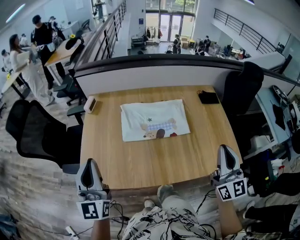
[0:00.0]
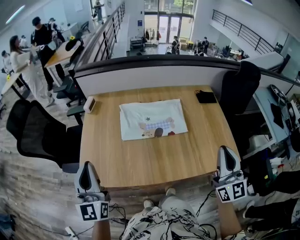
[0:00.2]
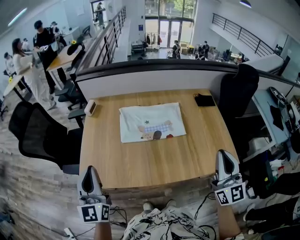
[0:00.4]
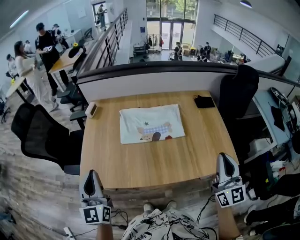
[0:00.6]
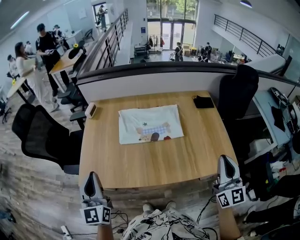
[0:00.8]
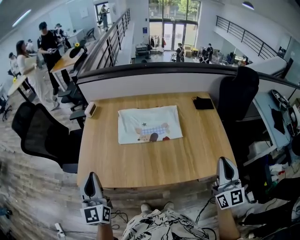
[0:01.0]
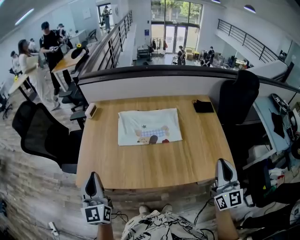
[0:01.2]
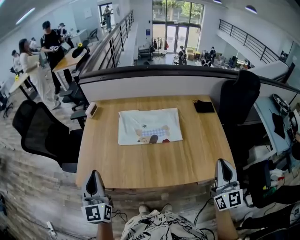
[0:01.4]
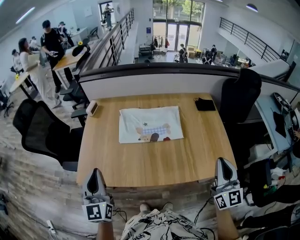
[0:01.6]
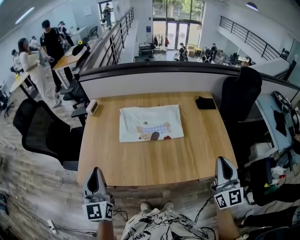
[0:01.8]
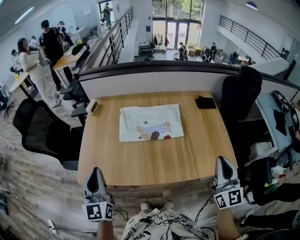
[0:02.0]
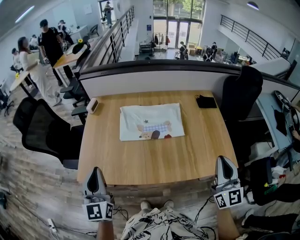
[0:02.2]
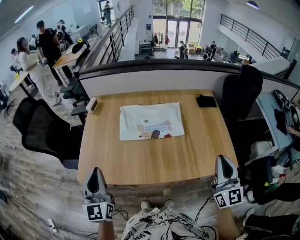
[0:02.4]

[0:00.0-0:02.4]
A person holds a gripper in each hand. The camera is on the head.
0:00.0 to 0:01.2: The right gripper shifts roughly 10 cm to the right and backward; the left gripper shifts some 5 cm backward.
0:01.2 to 0:02.4: The grippers stay close to where they were, moving slightly.

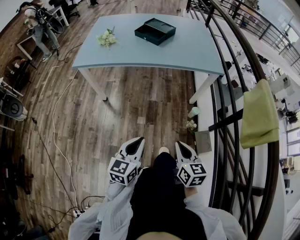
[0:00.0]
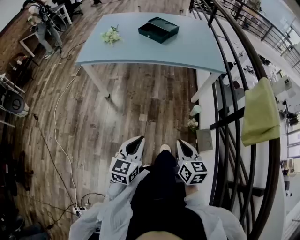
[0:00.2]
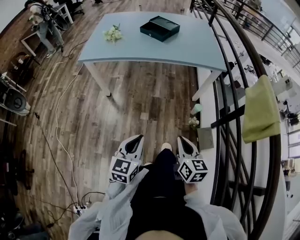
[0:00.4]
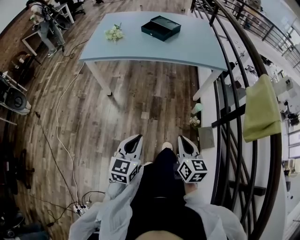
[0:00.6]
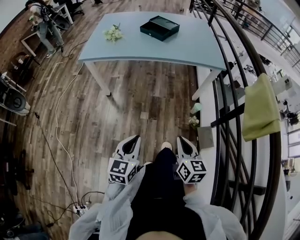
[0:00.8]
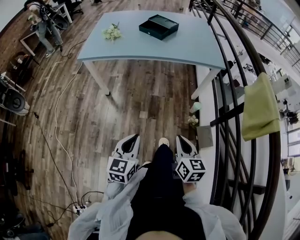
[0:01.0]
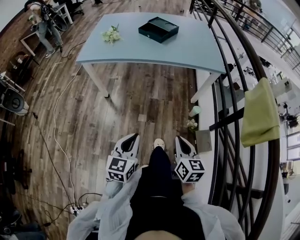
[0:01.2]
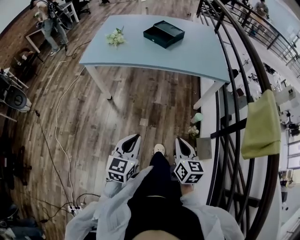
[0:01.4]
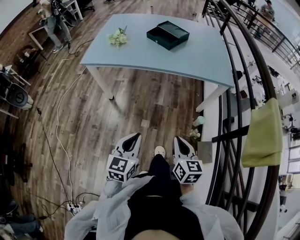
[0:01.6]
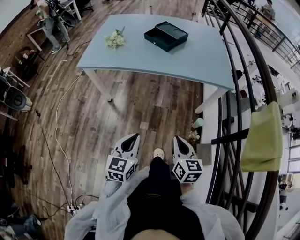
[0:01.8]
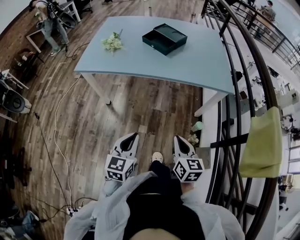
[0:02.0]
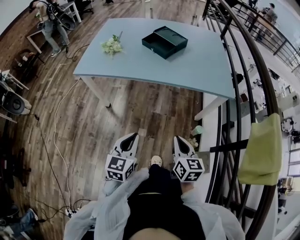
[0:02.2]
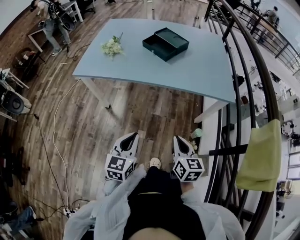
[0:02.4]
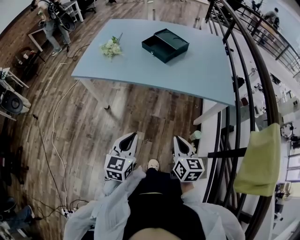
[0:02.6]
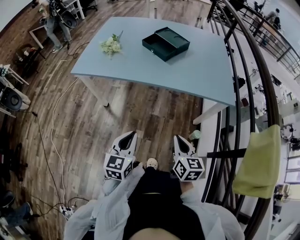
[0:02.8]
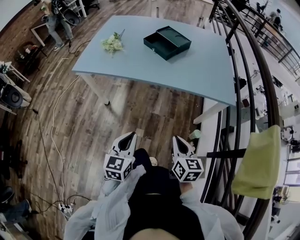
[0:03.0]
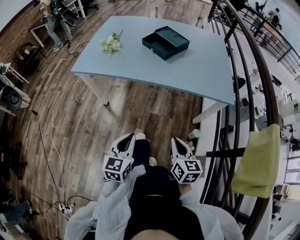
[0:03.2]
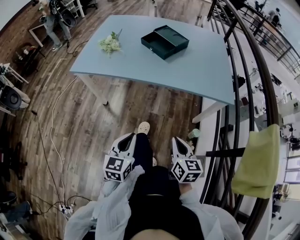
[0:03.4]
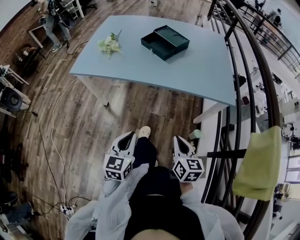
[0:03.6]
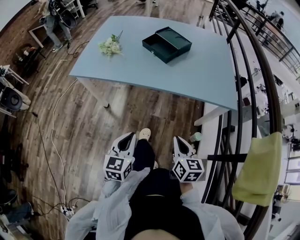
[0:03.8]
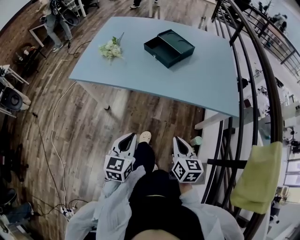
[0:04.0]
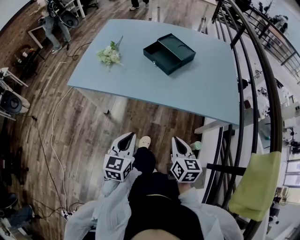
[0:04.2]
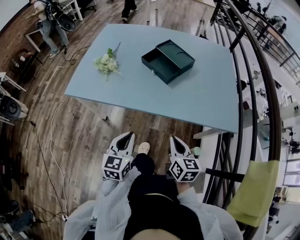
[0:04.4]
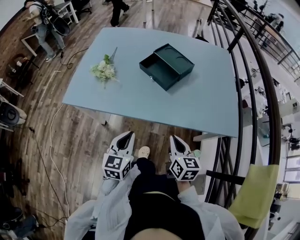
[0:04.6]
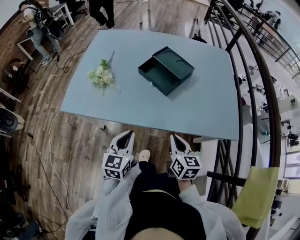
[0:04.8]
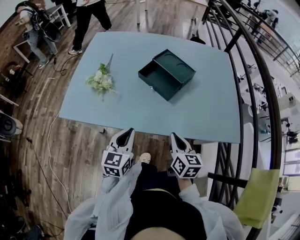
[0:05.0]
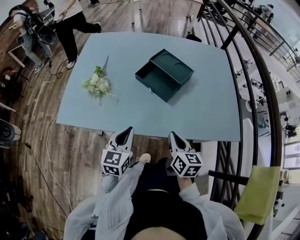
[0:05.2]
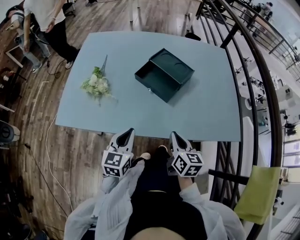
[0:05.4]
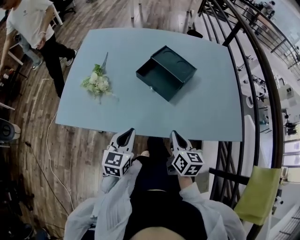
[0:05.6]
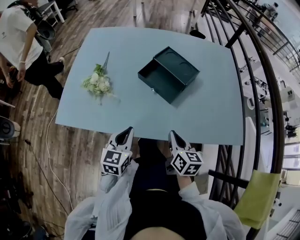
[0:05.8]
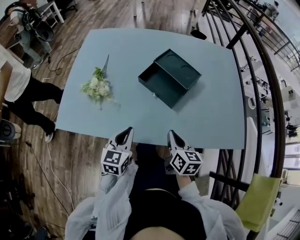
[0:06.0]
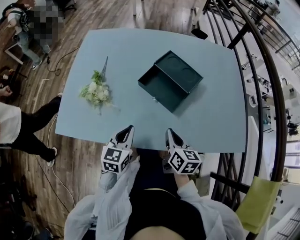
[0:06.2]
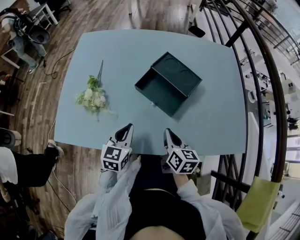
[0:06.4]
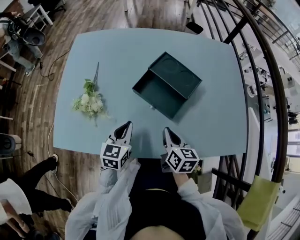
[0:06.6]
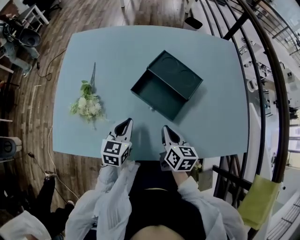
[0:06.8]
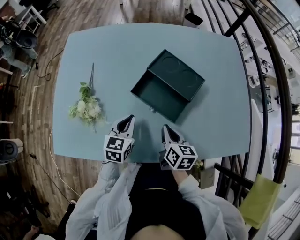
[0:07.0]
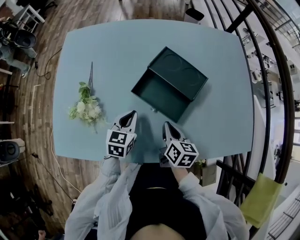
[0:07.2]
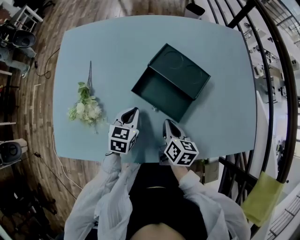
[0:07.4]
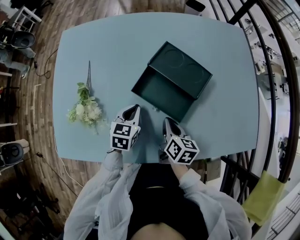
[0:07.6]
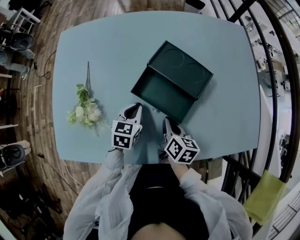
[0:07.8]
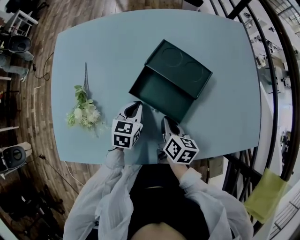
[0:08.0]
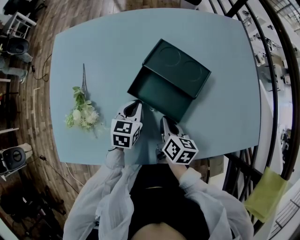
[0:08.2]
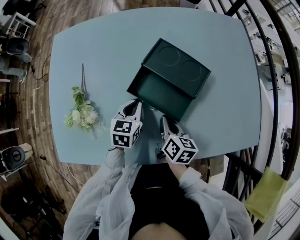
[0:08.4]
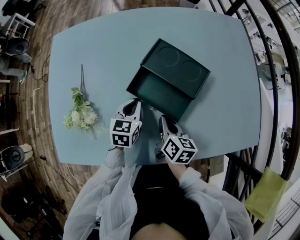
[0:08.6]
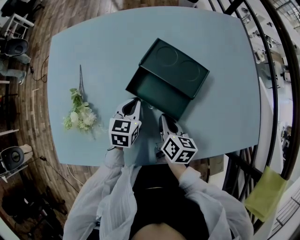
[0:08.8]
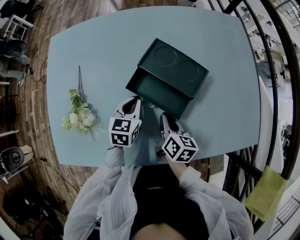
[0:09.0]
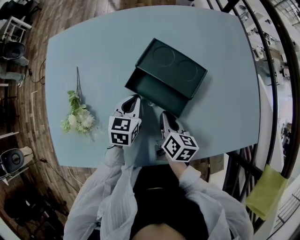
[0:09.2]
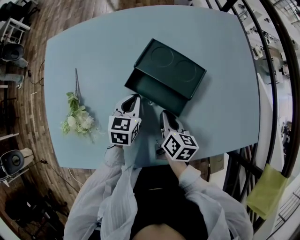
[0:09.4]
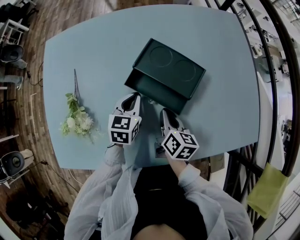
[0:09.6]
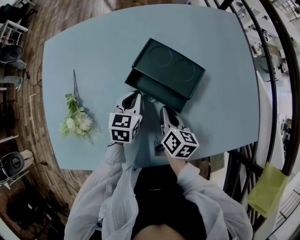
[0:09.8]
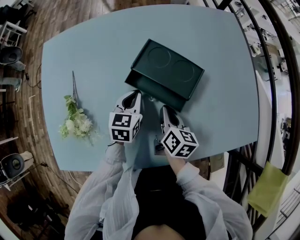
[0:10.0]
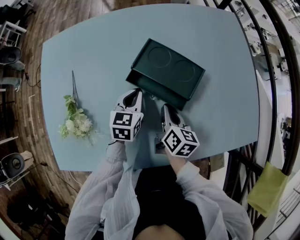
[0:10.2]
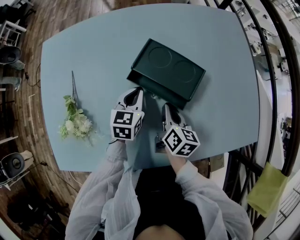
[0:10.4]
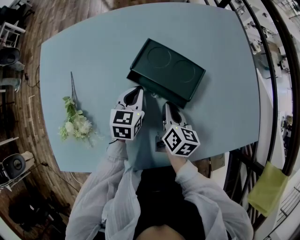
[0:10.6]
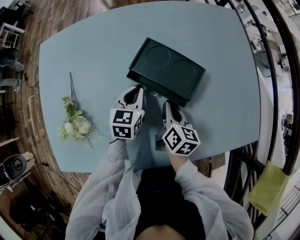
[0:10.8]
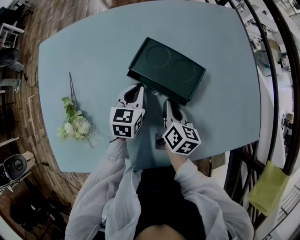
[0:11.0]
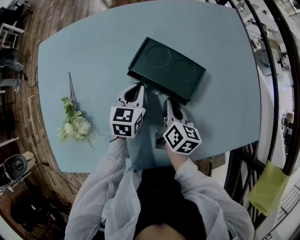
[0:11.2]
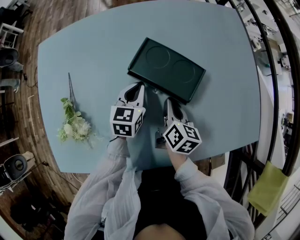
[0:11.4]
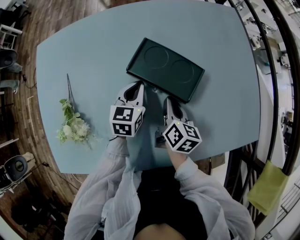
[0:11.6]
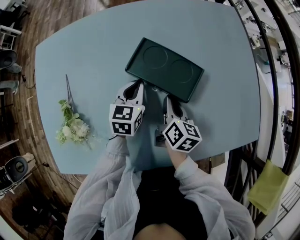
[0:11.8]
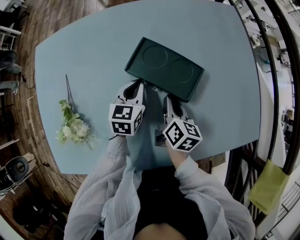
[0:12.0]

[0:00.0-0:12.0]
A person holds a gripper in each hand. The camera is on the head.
0:00.0 to 0:01.6: Both grippers move forward, about 5 cm.
0:01.6 to 0:03.0: The grippers both shift forward by some 10 cm.
0:03.0 to 0:04.4: The grippers both shift forward by roughly 20 cm.
0:04.4 to 0:06.0: Both grippers travel together forward, approximately 20 cm.
0:06.0 to 0:07.6: The grippers both shift forward and downward by about 20 cm.
0:07.6 to 0:09.0: The left gripper moves some 5 cm.
0:09.0 to 0:10.4: The right gripper moves some 5 cm, while the left gripper ends up approximately 5 cm from where it was.
0:10.4 to 0:12.0: The grippers stay close to where they were, moving slightly.

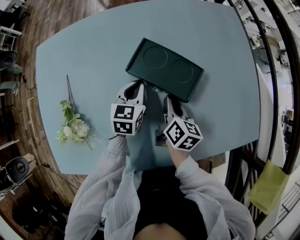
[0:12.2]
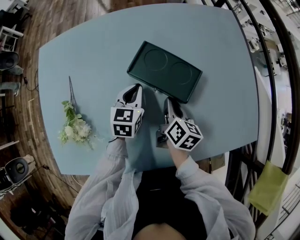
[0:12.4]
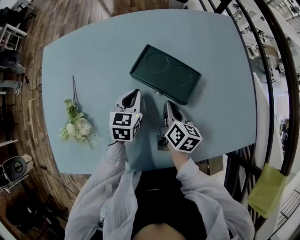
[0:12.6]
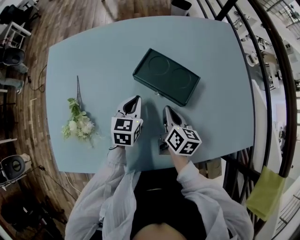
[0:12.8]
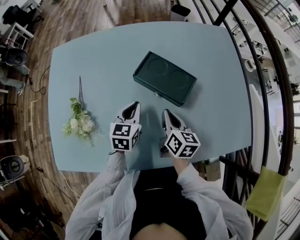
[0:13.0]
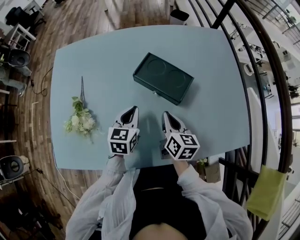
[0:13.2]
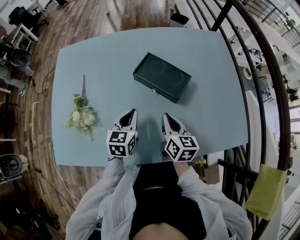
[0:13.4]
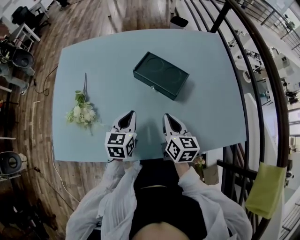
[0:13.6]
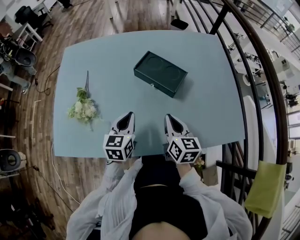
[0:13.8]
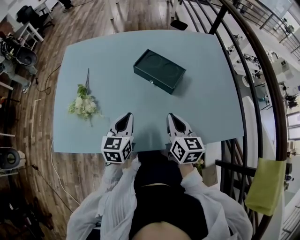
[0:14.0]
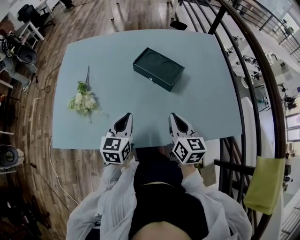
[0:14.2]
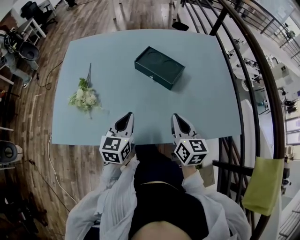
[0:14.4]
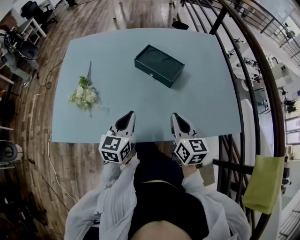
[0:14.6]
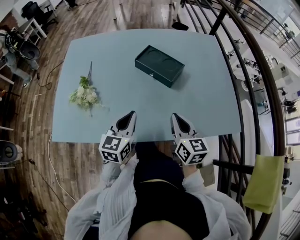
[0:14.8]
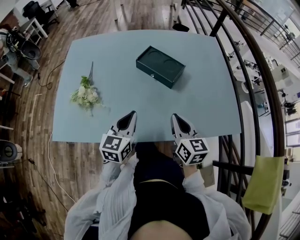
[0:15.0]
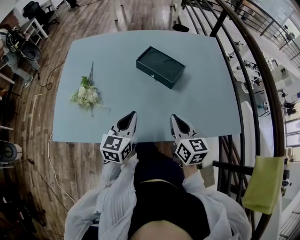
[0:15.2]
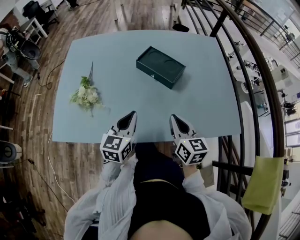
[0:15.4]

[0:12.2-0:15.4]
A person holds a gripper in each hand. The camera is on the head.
0:12.2 to 0:13.8: Both grippers move backward and upward, approximately 20 cm. The right gripper changes its angle by roughly 30 degrees.
0:13.8 to 0:15.4: The grippers both shift backward by roughly 5 cm.

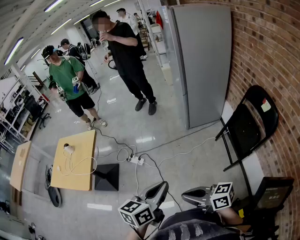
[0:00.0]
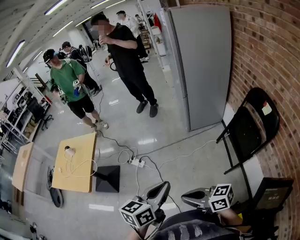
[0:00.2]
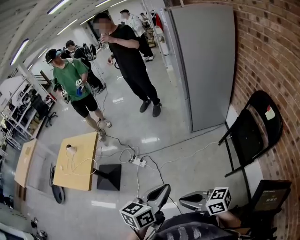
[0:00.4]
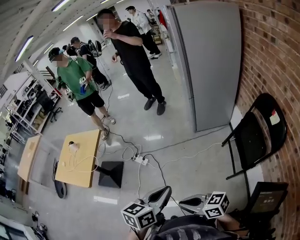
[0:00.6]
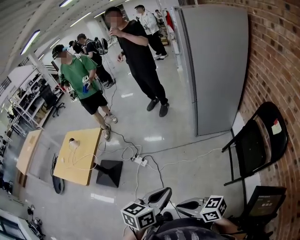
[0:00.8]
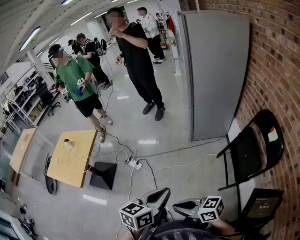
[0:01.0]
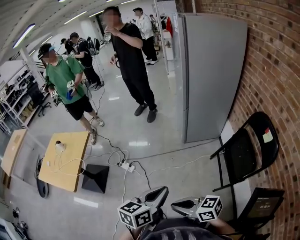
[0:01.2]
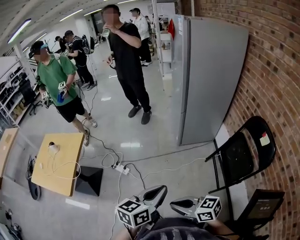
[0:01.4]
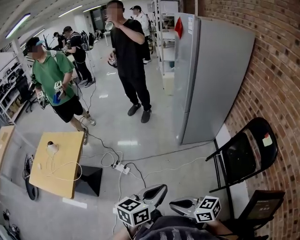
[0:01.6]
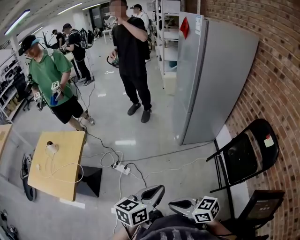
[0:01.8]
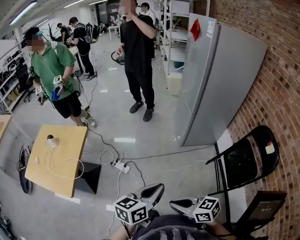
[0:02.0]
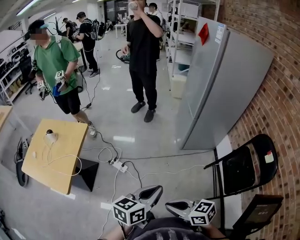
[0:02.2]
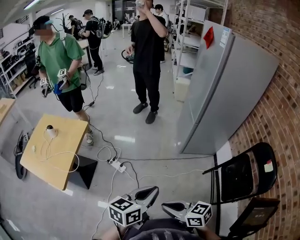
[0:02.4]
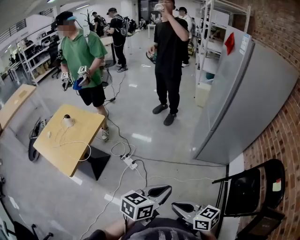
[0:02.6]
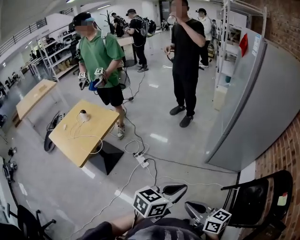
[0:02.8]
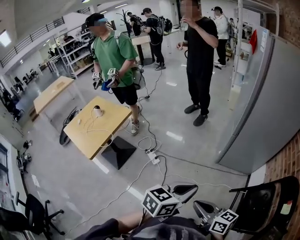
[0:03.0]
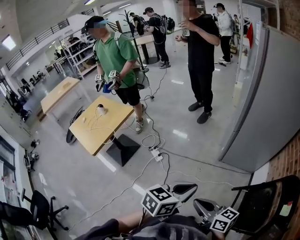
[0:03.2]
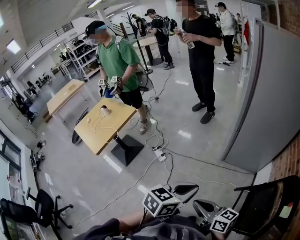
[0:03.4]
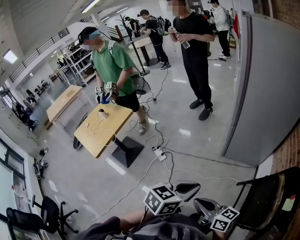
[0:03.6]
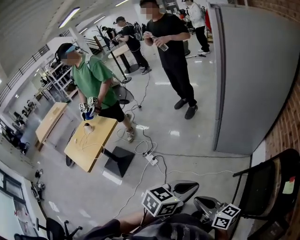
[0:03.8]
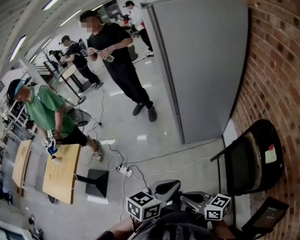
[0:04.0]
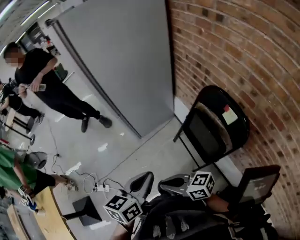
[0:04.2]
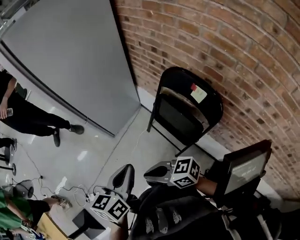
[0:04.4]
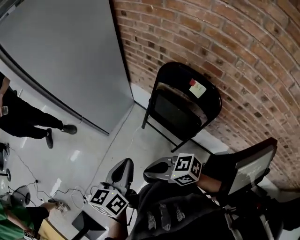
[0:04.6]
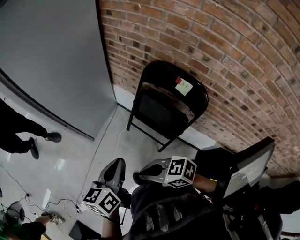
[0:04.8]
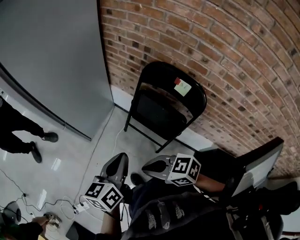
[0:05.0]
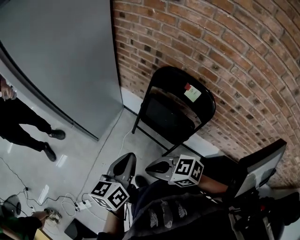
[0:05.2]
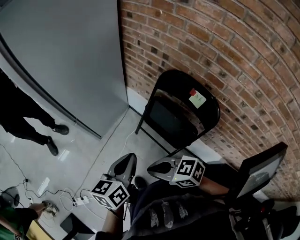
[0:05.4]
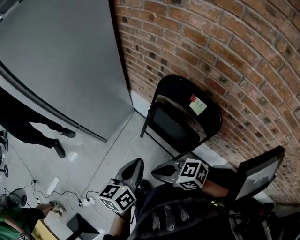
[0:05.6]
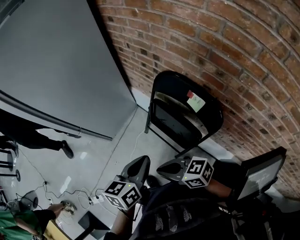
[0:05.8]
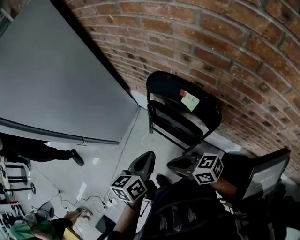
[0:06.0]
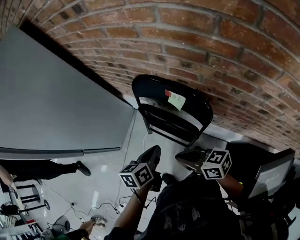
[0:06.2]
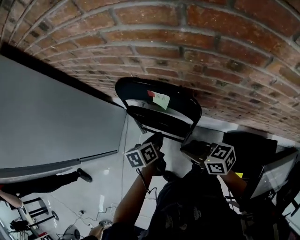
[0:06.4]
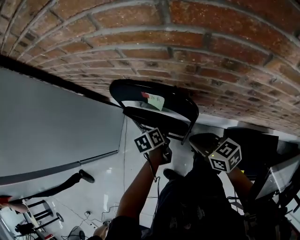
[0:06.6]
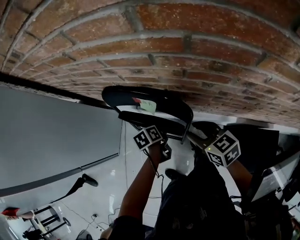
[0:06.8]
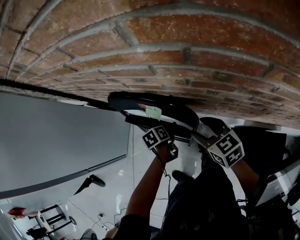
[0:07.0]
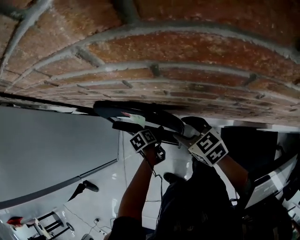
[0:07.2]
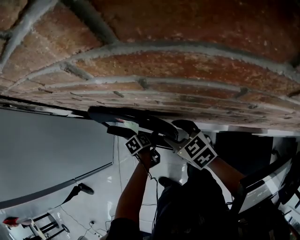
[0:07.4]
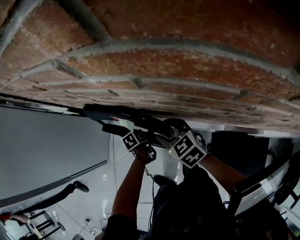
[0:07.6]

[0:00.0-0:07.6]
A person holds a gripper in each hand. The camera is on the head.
0:00.0 to 0:01.6: The two grippers go some 10 cm forward.
0:01.6 to 0:03.0: The two grippers go approximately 15 cm to the right and forward.
0:03.0 to 0:04.6: The right gripper moves some 20 cm, and swivels some 30 degrees, while the left gripper changes place by about 25 cm, and rotates some 30 degrees.
0:04.6 to 0:06.0: Both grippers move to the right, approximately 20 cm. The right gripper turns by roughly 20 degrees.
0:06.0 to 0:07.6: The right gripper ends up roughly 30 cm from where it was, changes its angle by approximately 50 degrees, and opens. Meanwhile the left gripper is displaced downward by roughly 30 cm, angles its fingers downward, by about 40 degrees, and opens.
